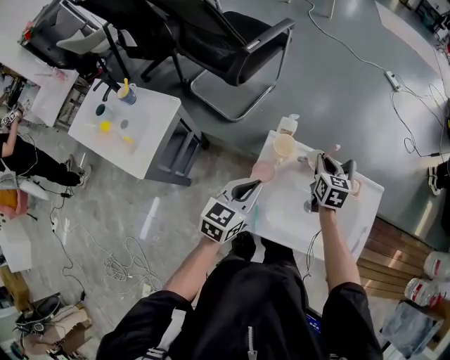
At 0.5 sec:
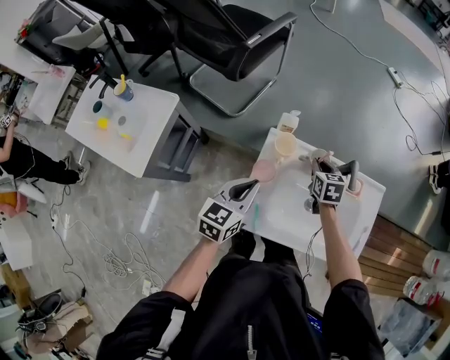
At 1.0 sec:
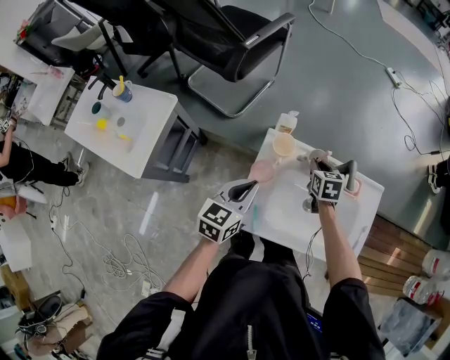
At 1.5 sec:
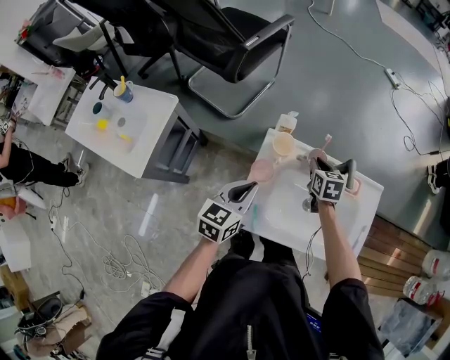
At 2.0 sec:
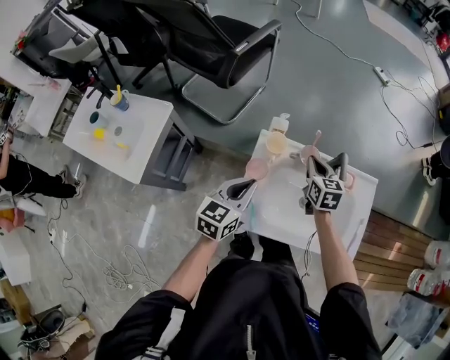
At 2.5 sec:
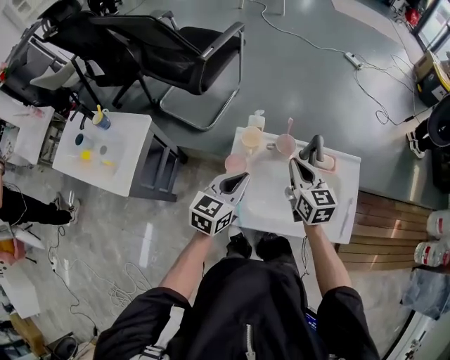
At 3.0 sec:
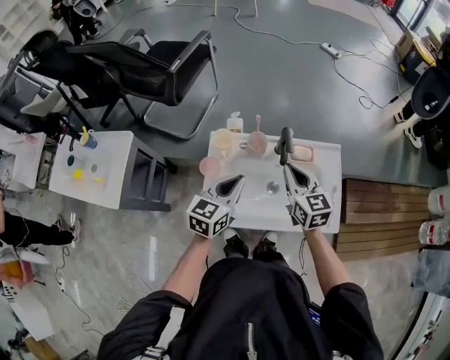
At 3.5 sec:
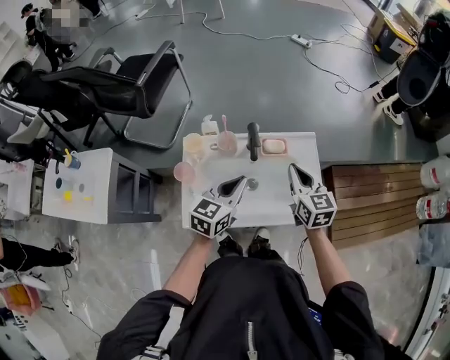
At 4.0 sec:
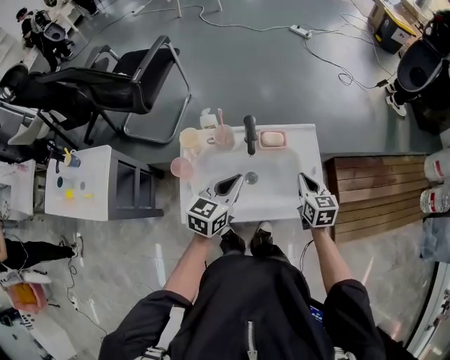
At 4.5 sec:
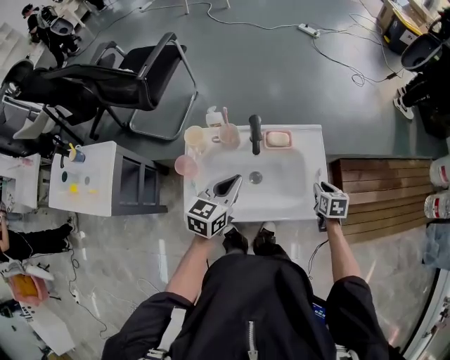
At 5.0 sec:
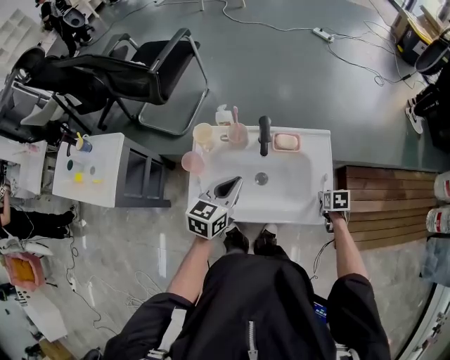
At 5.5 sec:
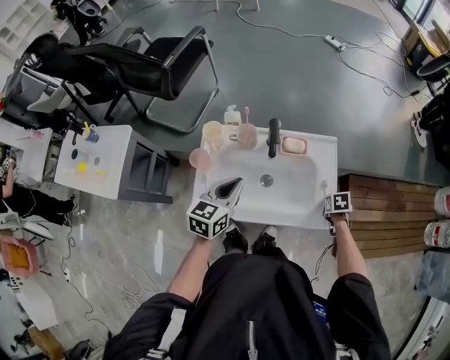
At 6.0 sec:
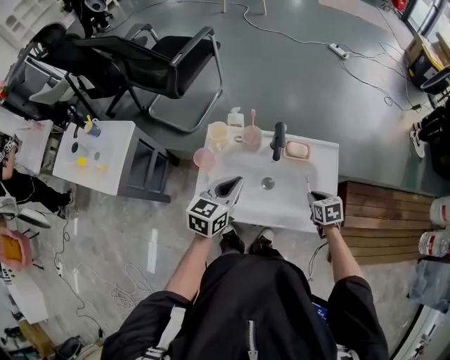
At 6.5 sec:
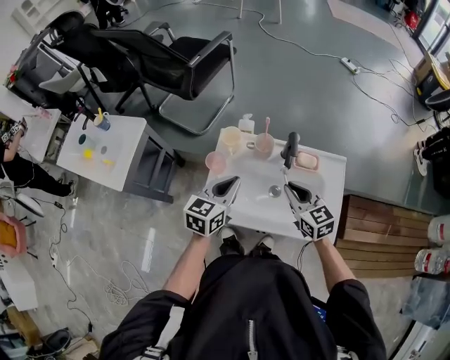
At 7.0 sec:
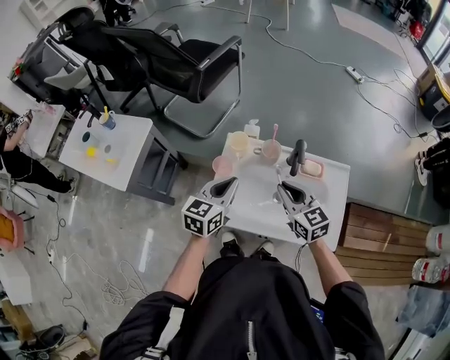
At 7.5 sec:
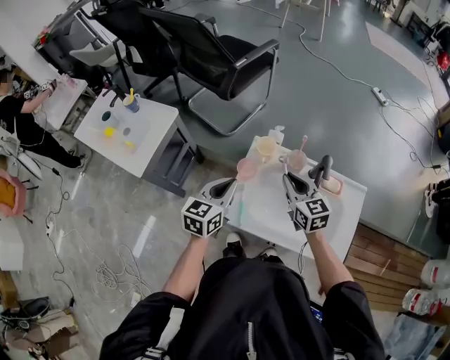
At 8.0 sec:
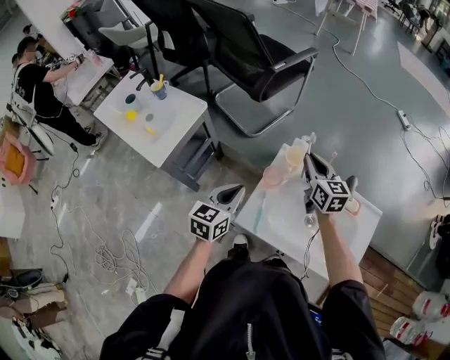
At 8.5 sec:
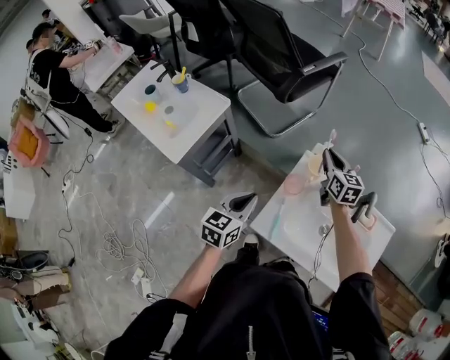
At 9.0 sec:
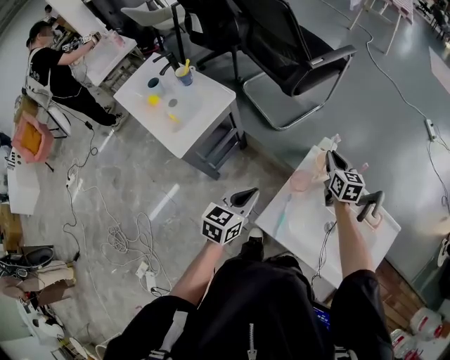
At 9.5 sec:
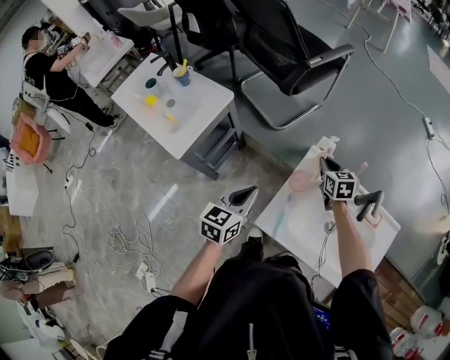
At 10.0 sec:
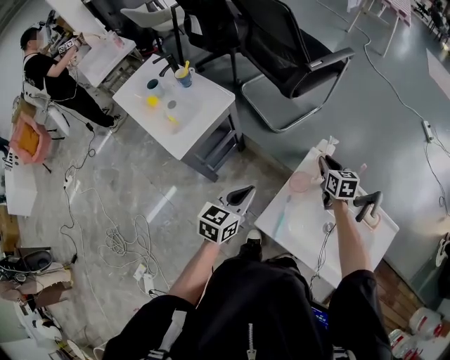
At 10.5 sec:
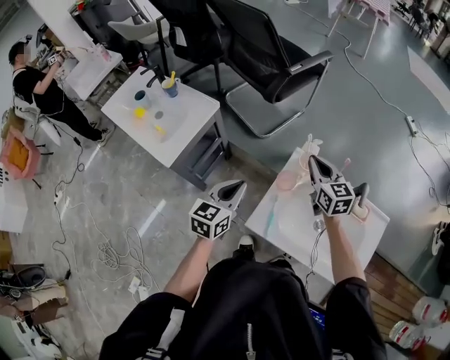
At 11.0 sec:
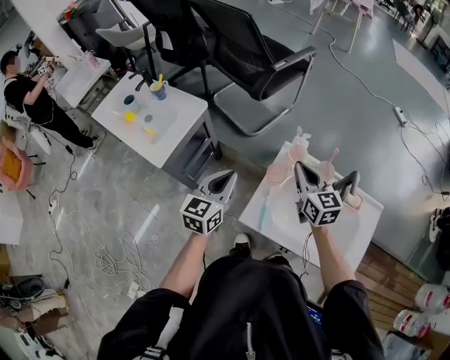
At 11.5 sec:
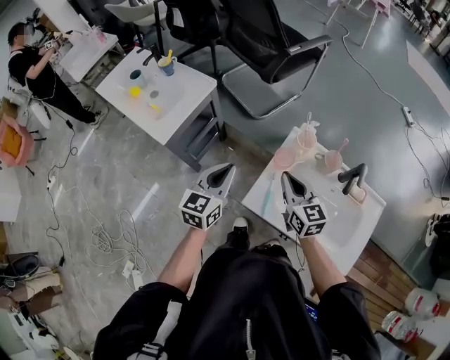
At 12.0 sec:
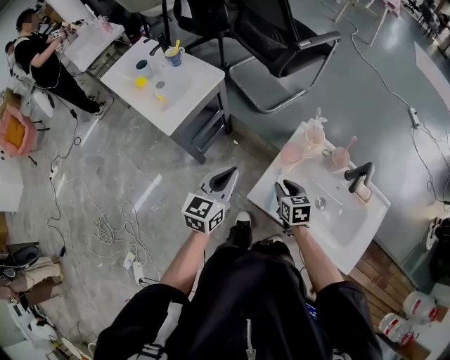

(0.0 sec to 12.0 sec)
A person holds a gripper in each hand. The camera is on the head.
2.0 sec - 4.0 sec: The right gripper shifts approximately 30 cm to the right and backward. The left gripper heads to the right, covering roughly 25 cm.
4.0 sec - 6.0 sec: The right gripper heads downward, covering approximately 10 cm, turns by roughly 30 degrees, and opens, then closes again. The left gripper shifts by roughly 5 cm.
6.0 sec - 8.0 sec: The left gripper shifts about 25 cm to the left, and turns by about 20 degrees; the right gripper heads to the left, forward and upward, covering approximately 40 cm, and tilts its fingers roughly 40 degrees upward.
8.0 sec - 10.0 sec: The right gripper heads downward and forward, covering approximately 15 cm. The left gripper goes approximately 5 cm to the left.
10.0 sec - 12.0 sec: The right gripper travels backward and to the left by approximately 25 cm; the left gripper shifts about 5 cm backward.

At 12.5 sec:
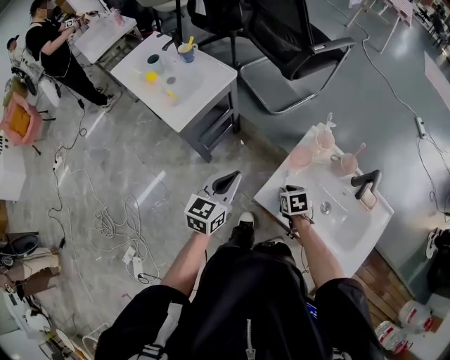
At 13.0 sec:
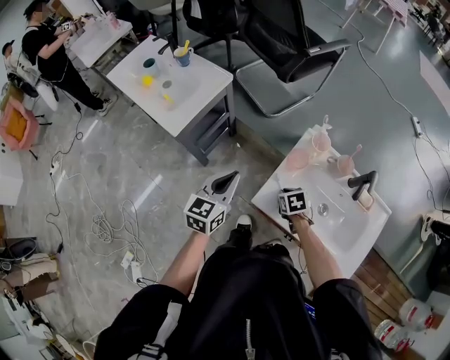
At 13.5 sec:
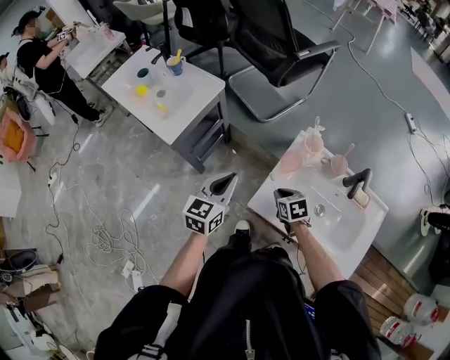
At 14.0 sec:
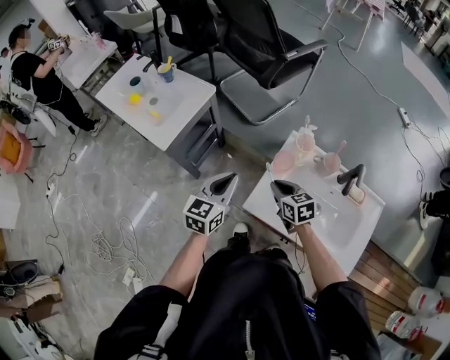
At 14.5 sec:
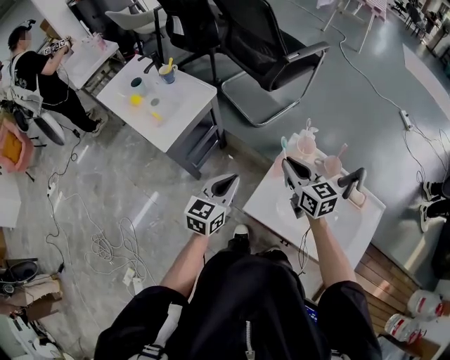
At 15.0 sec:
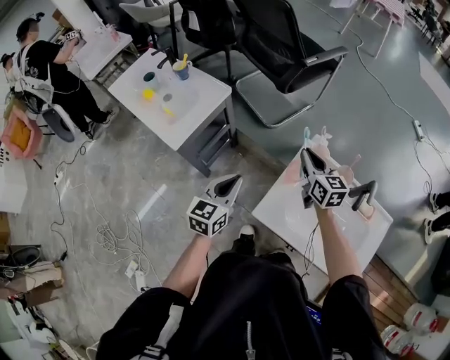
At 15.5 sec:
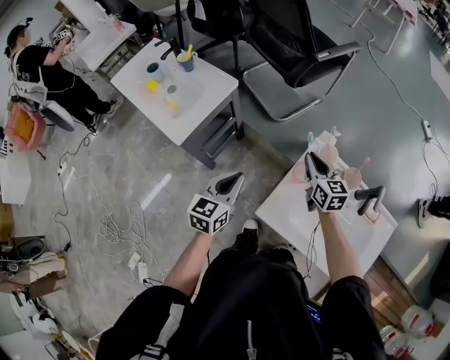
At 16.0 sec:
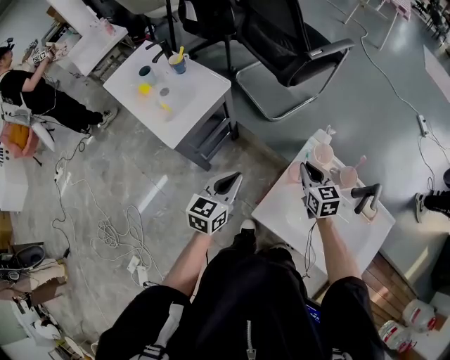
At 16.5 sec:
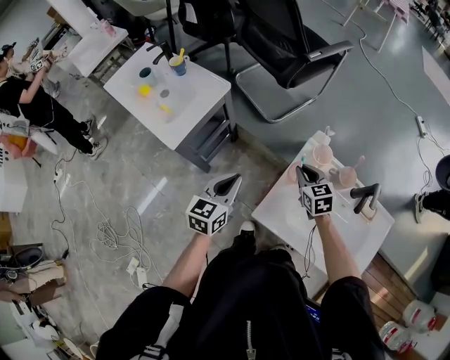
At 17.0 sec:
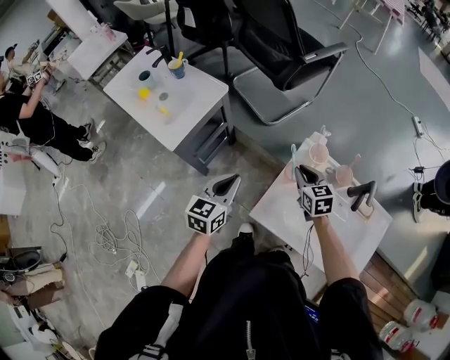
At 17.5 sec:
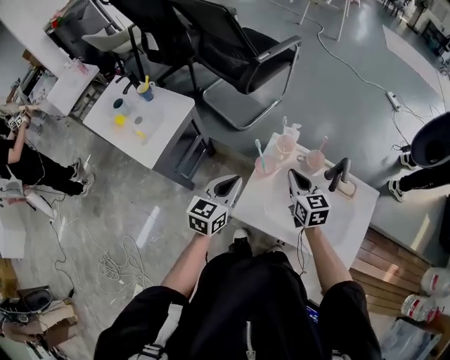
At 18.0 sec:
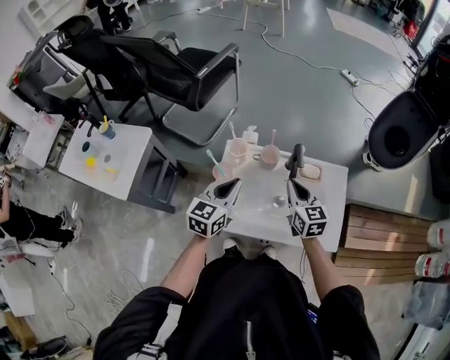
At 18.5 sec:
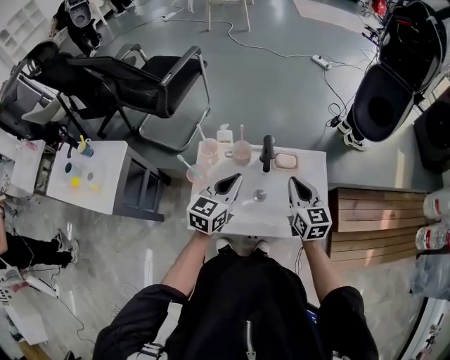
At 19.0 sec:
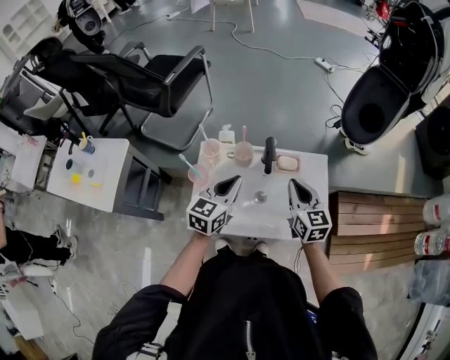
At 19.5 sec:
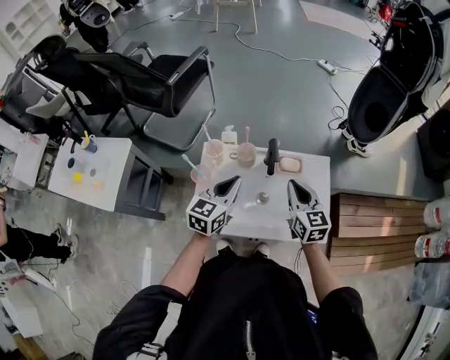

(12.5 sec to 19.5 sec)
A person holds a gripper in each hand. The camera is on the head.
12.5 sec - 14.5 sec: The left gripper shifts by some 5 cm, while the right gripper is displaced upward by about 25 cm, and tilts its fingers some 50 degrees upward.
14.5 sec - 16.0 sec: The left gripper ends up roughly 5 cm from where it was, while the right gripper goes approximately 10 cm downward and forward.
16.0 sec - 17.5 sec: The right gripper travels to the right, backward and upward by some 10 cm. Meanwhile the left gripper shifts roughly 10 cm to the right.
17.5 sec - 19.5 sec: Both grippers move to the right, roughly 25 cm. The right gripper swivels some 20 degrees; the left gripper swivels approximately 20 degrees.

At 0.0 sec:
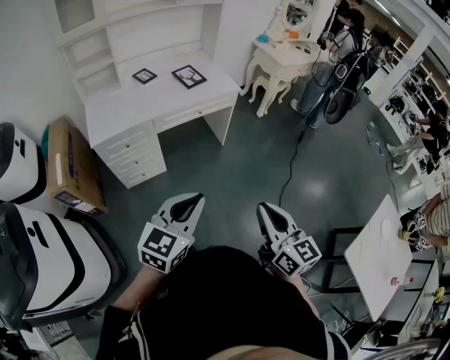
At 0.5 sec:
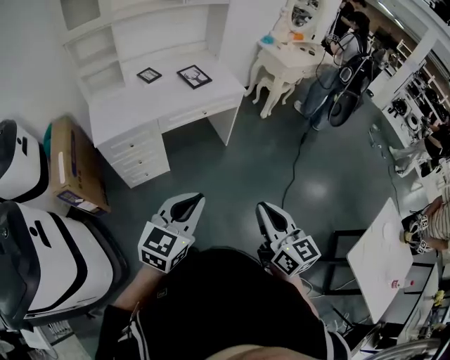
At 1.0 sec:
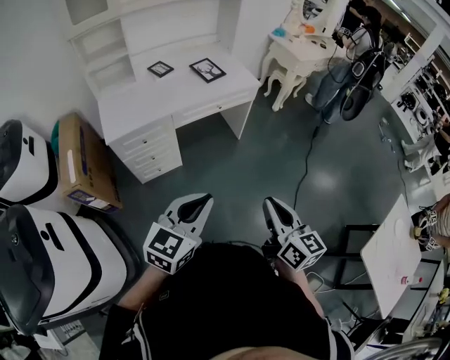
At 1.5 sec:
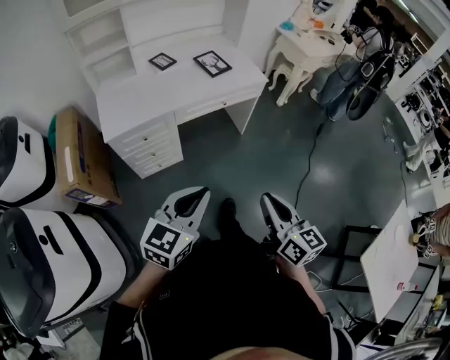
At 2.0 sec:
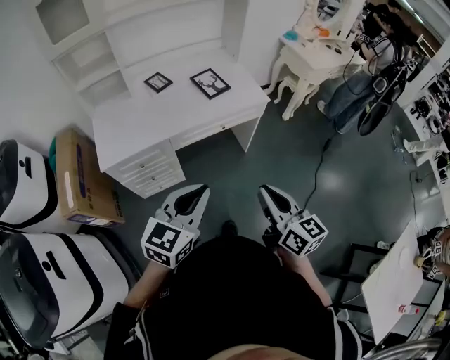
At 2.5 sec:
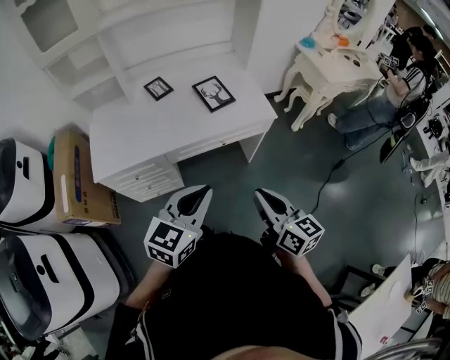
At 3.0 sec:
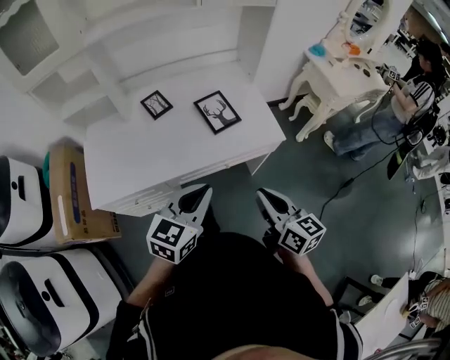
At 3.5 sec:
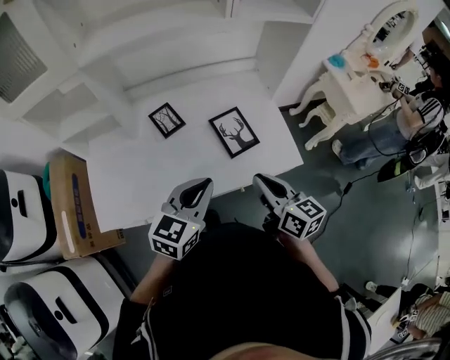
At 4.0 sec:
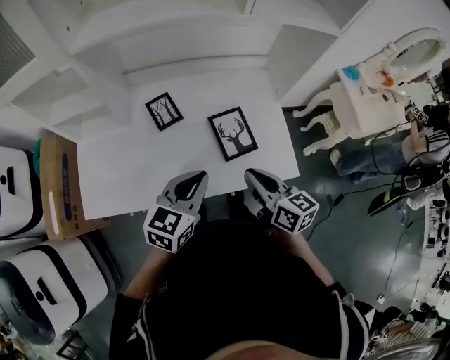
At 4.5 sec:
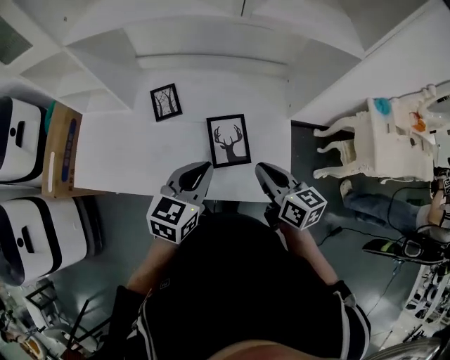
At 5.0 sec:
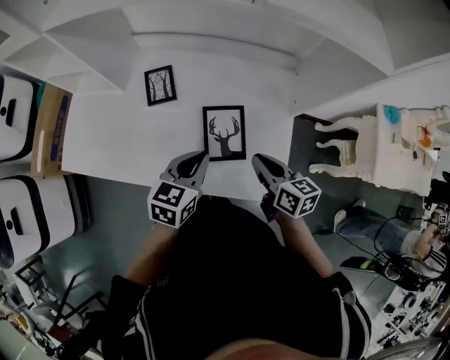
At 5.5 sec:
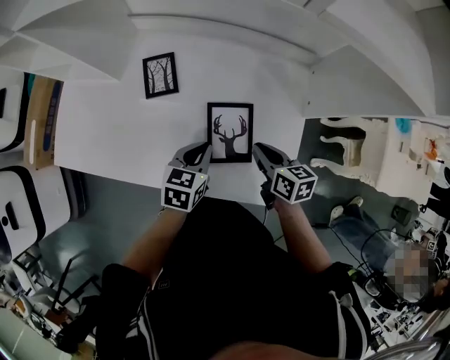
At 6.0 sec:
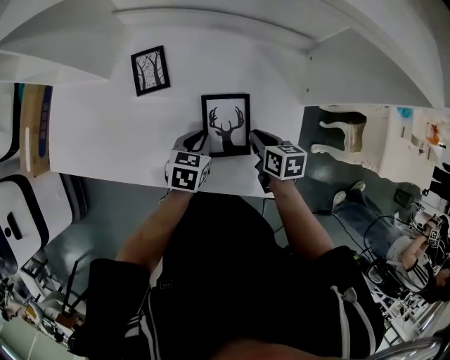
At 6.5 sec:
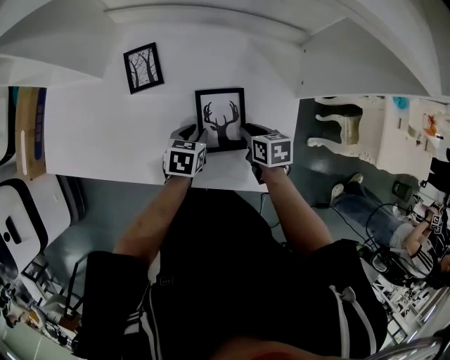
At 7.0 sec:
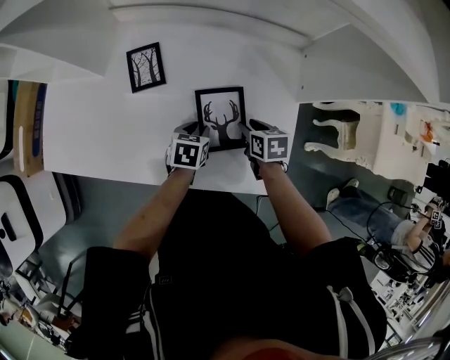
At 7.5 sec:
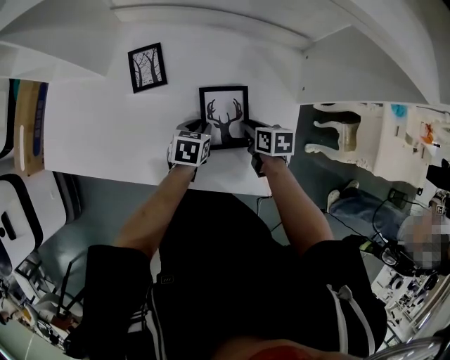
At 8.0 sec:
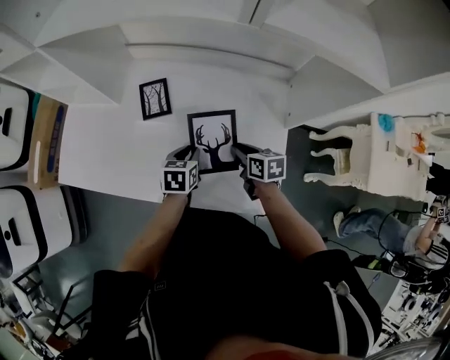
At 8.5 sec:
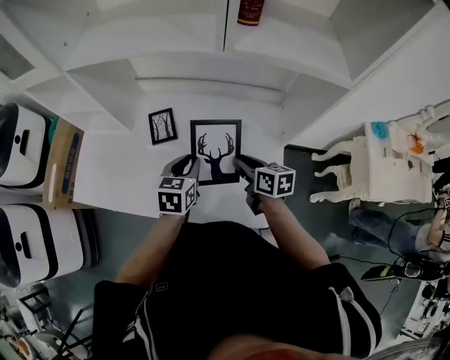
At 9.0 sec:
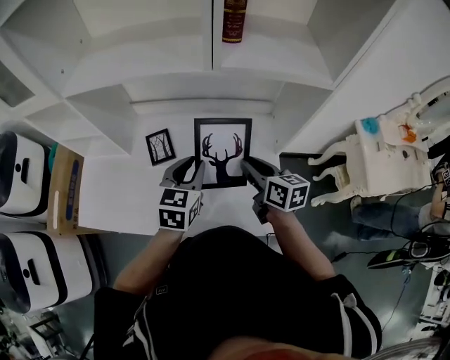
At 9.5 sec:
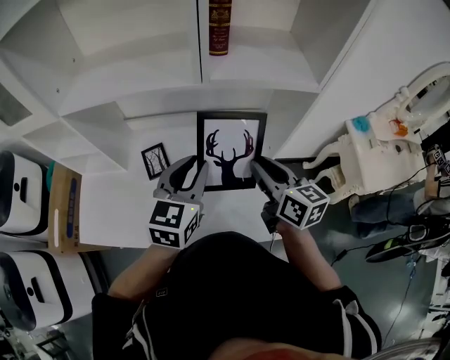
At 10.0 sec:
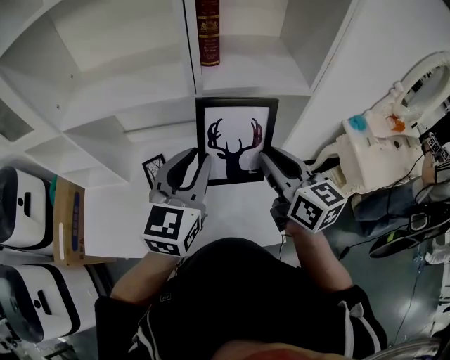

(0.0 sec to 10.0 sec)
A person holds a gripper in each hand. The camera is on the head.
0.0 sec - 2.0 sec: The two grippers go roughly 25 cm forward.
2.0 sec - 4.0 sec: The two grippers travel together, forward, roughly 50 cm. The right gripper swivels roughly 30 degrees.
4.0 sec - 6.0 sec: Both grippers travel together downward, forward and to the right, approximately 30 cm. The left gripper swivels approximately 40 degrees; the right gripper angles its fingers downward, by approximately 30 degrees.
6.0 sec - 8.0 sec: The grippers make only small movements.
8.0 sec - 10.0 sec: The two grippers go about 40 cm upward. The left gripper tilts its fingers approximately 40 degrees upward; the right gripper tilts its fingers roughly 40 degrees upward.
